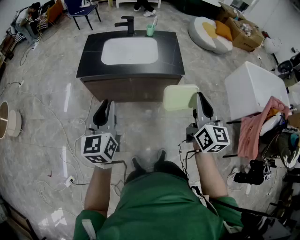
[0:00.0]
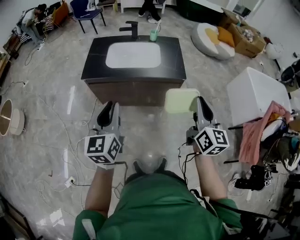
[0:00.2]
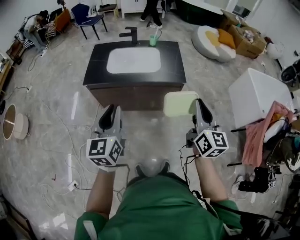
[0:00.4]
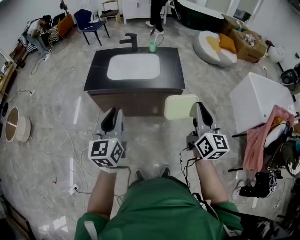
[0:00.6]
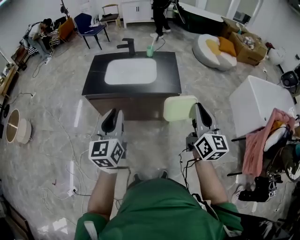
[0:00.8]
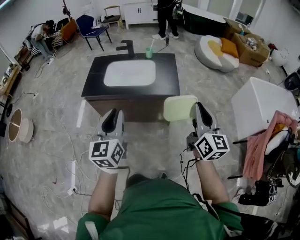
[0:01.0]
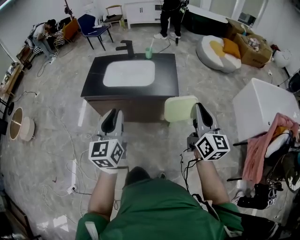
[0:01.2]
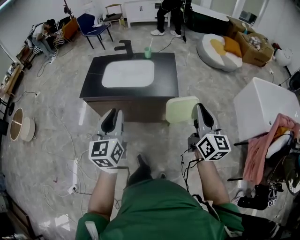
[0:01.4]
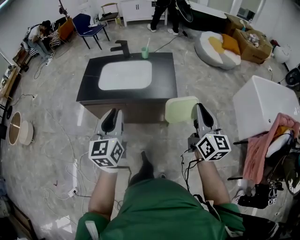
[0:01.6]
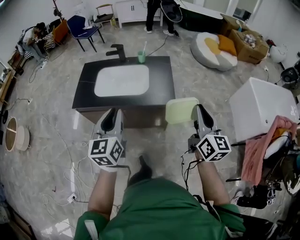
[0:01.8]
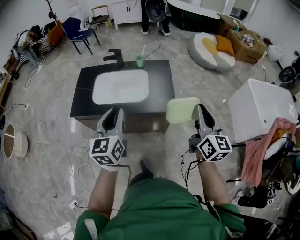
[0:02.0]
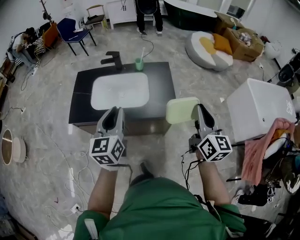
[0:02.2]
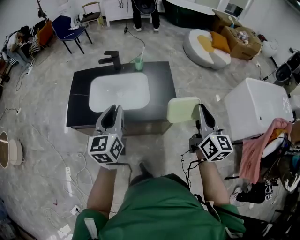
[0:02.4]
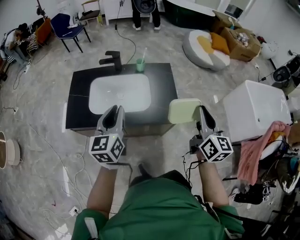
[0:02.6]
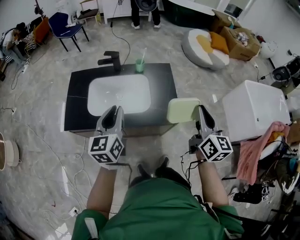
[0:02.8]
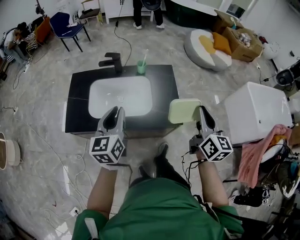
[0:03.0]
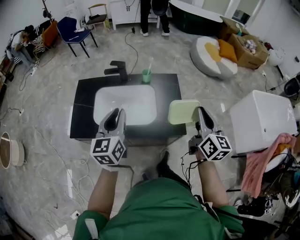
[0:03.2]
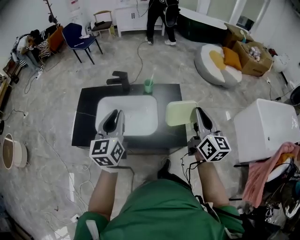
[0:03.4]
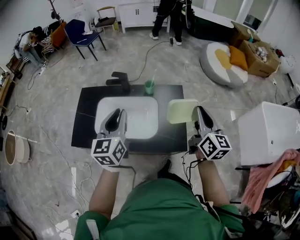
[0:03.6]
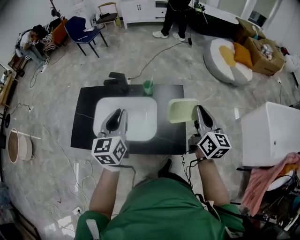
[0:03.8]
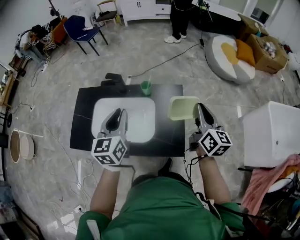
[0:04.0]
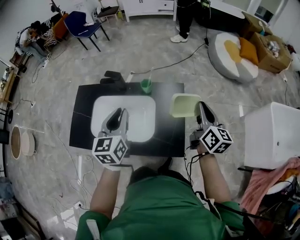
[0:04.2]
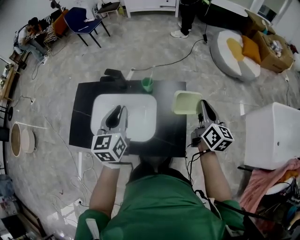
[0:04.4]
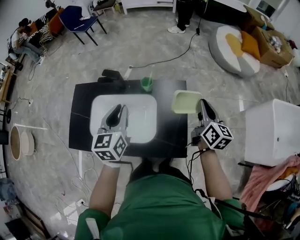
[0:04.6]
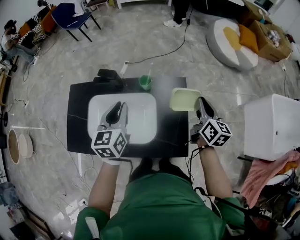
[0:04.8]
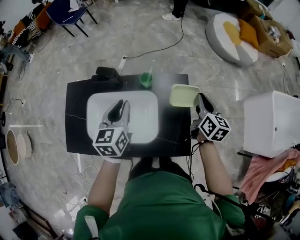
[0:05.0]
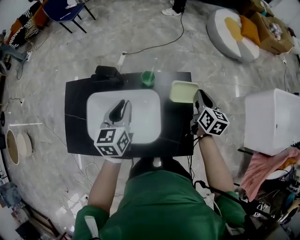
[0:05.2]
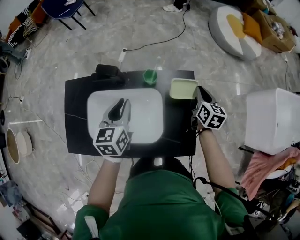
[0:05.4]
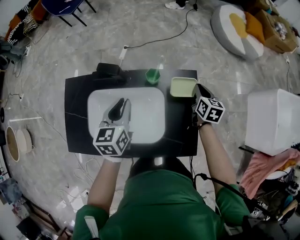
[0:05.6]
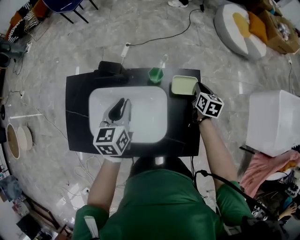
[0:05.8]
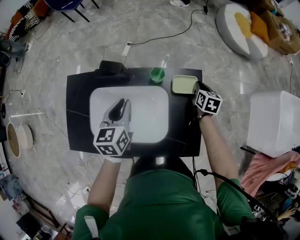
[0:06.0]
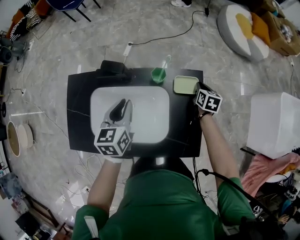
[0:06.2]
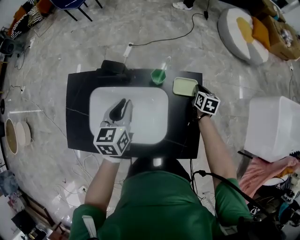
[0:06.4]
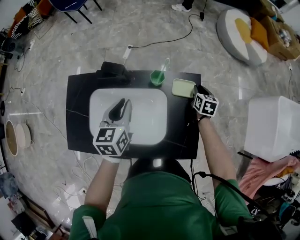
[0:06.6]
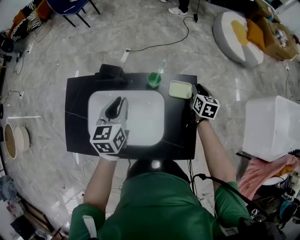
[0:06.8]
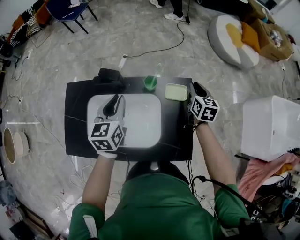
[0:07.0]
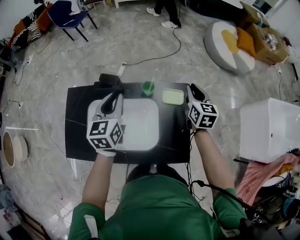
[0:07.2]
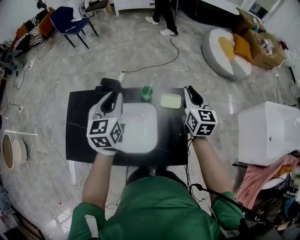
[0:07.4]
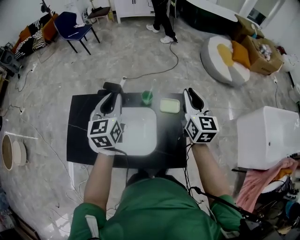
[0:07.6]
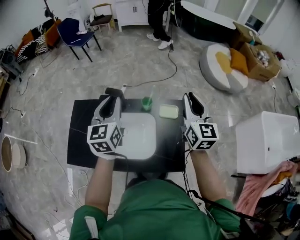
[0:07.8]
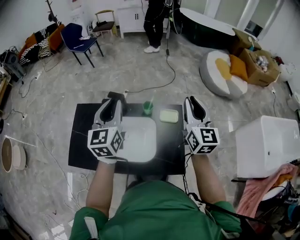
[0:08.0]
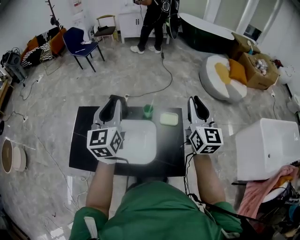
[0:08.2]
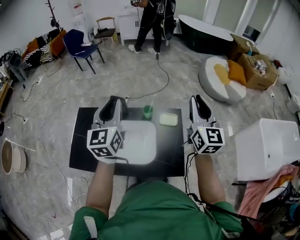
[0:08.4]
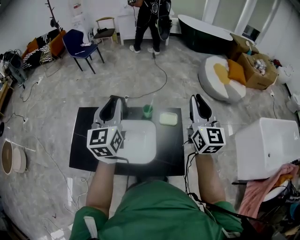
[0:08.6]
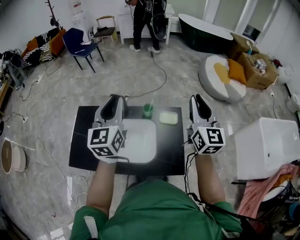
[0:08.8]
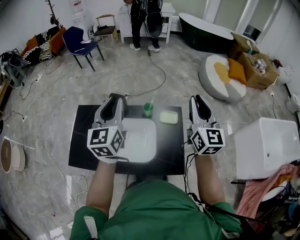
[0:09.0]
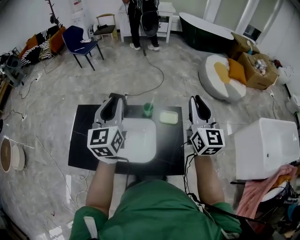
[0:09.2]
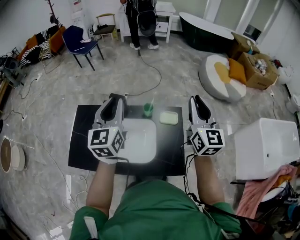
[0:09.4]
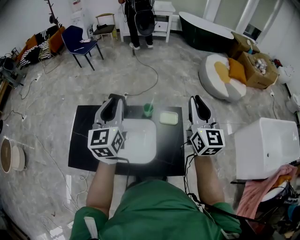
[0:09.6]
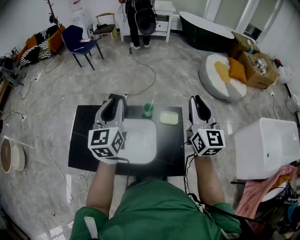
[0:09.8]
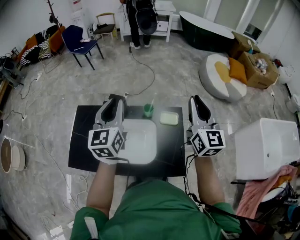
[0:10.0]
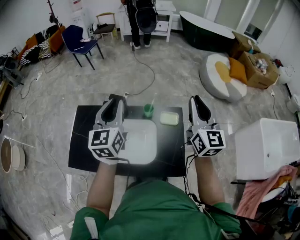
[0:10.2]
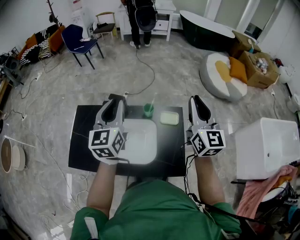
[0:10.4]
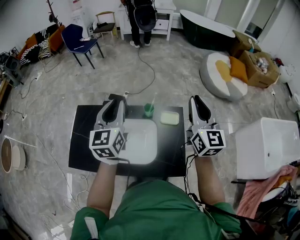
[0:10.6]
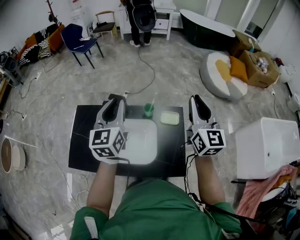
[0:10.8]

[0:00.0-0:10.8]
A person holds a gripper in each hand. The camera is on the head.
0:00.0 to 0:01.6: The grippers both shift to the right and forward by some 20 cm.
0:01.6 to 0:03.0: The grippers both shift forward by about 30 cm.
0:03.0 to 0:04.6: The two grippers go roughly 30 cm forward.
0:04.6 to 0:06.2: The right gripper is displaced downward and forward by roughly 30 cm, and angles its fingers downward, by approximately 30 degrees. Meanwhile the left gripper is displaced downward, forward and to the left by some 15 cm.
0:06.2 to 0:07.8: The right gripper is displaced upward by about 35 cm, and tilts its fingers approximately 40 degrees upward. Meanwhile the left gripper heads upward, covering roughly 20 cm, and rotates roughly 20 degrees.
0:07.8 to 0:09.2: Both grippers travel together upward, some 5 cm.
0:09.2 to 0:10.8: The grippers stay close to where they were, moving slightly.

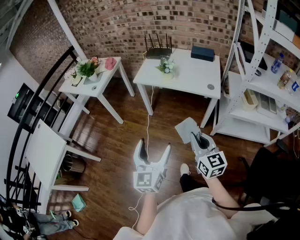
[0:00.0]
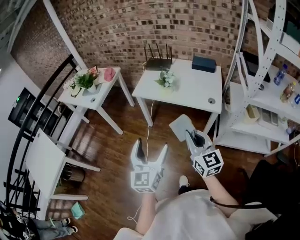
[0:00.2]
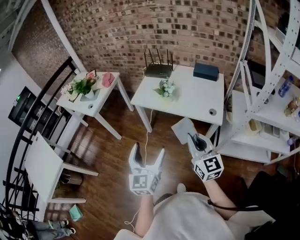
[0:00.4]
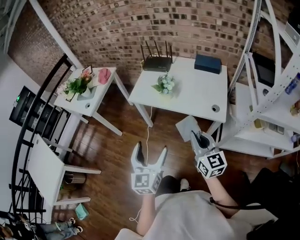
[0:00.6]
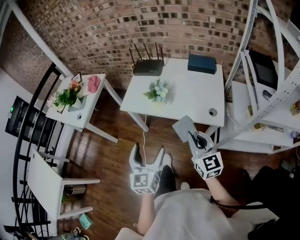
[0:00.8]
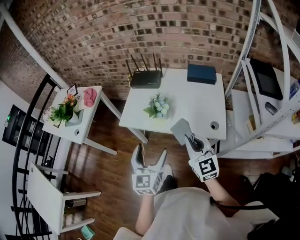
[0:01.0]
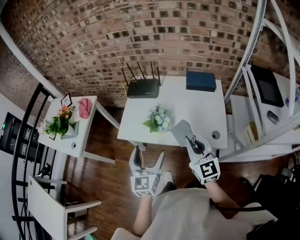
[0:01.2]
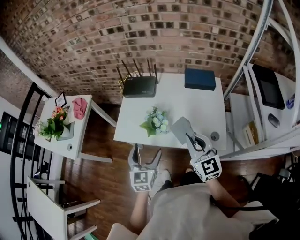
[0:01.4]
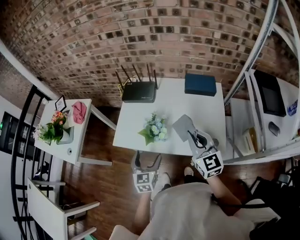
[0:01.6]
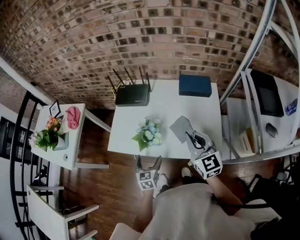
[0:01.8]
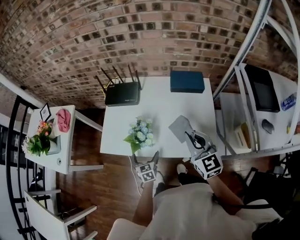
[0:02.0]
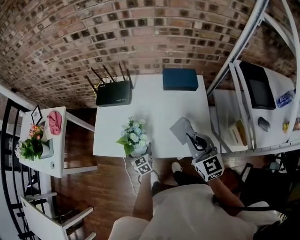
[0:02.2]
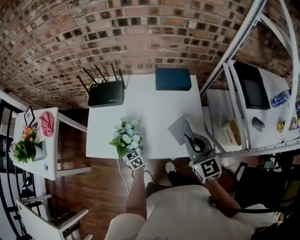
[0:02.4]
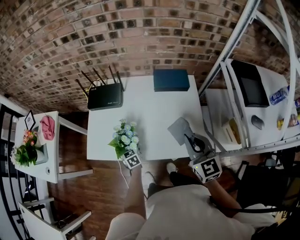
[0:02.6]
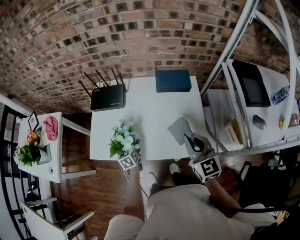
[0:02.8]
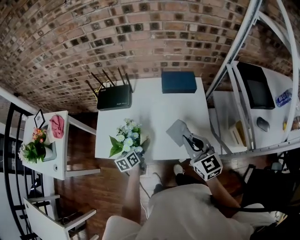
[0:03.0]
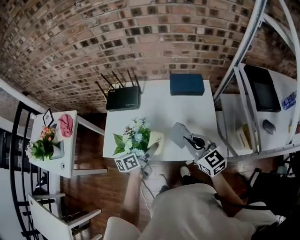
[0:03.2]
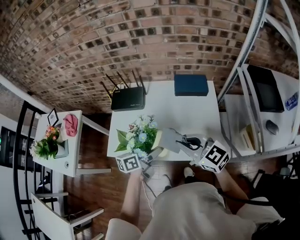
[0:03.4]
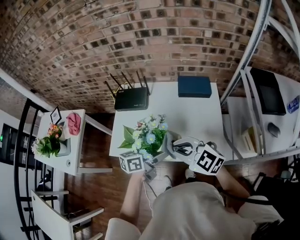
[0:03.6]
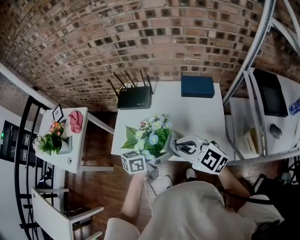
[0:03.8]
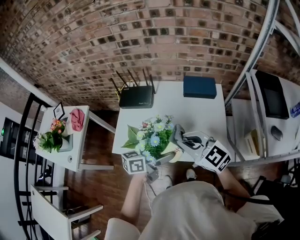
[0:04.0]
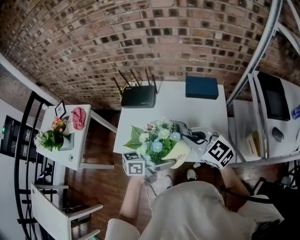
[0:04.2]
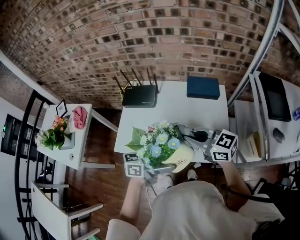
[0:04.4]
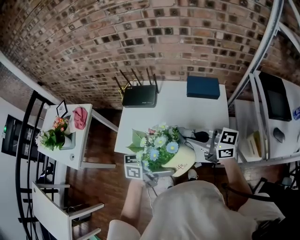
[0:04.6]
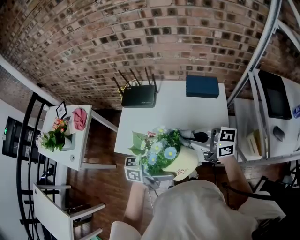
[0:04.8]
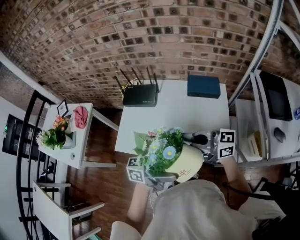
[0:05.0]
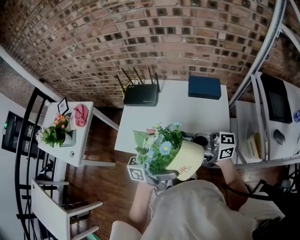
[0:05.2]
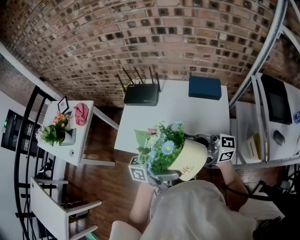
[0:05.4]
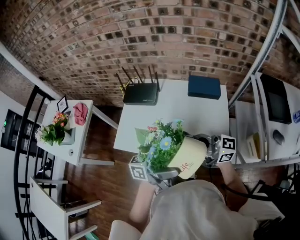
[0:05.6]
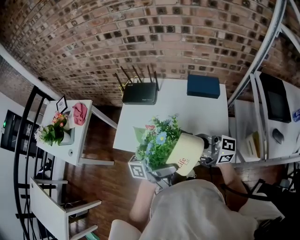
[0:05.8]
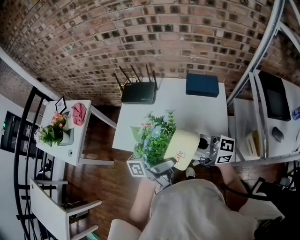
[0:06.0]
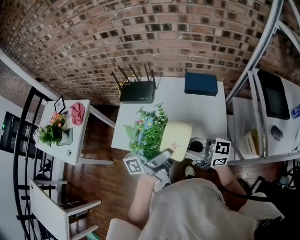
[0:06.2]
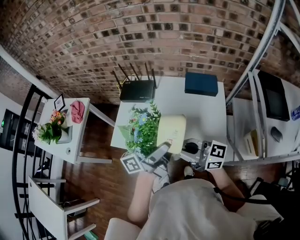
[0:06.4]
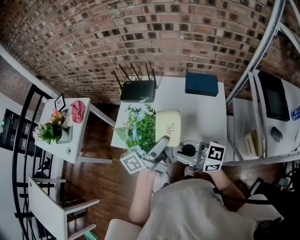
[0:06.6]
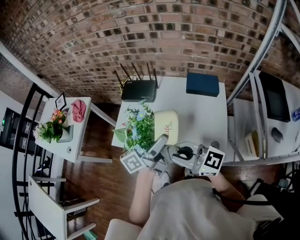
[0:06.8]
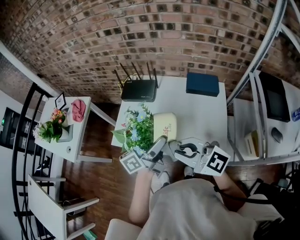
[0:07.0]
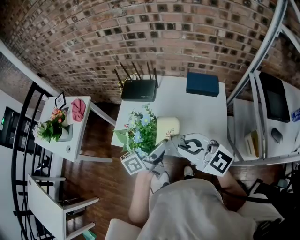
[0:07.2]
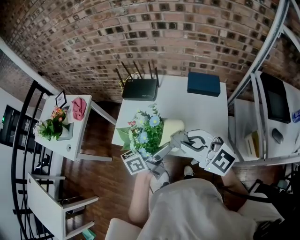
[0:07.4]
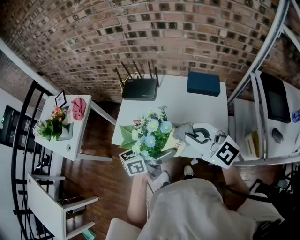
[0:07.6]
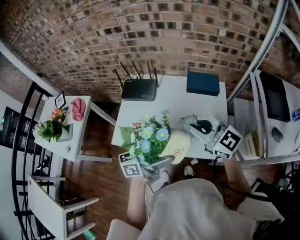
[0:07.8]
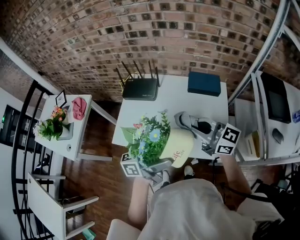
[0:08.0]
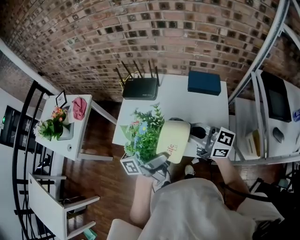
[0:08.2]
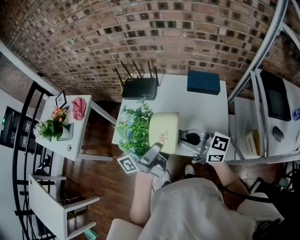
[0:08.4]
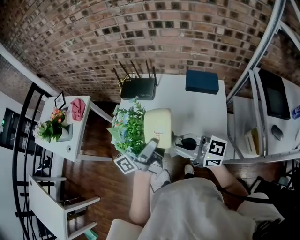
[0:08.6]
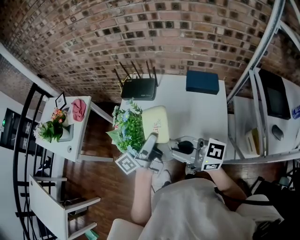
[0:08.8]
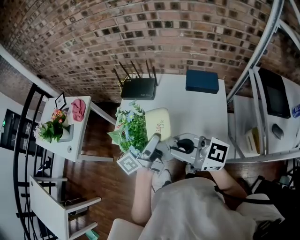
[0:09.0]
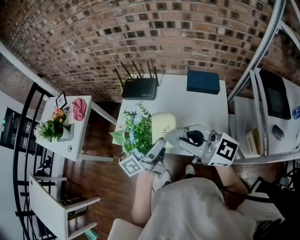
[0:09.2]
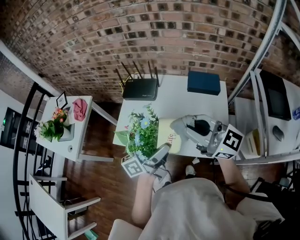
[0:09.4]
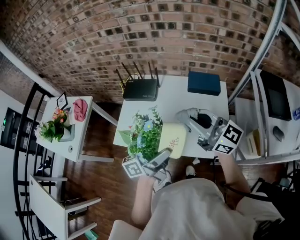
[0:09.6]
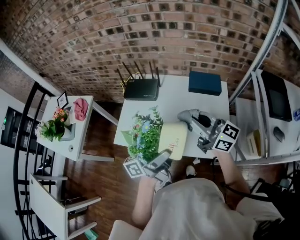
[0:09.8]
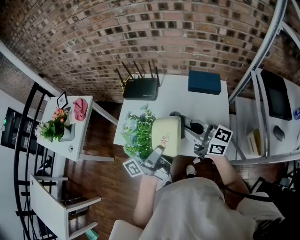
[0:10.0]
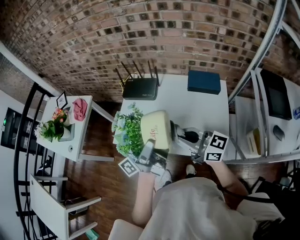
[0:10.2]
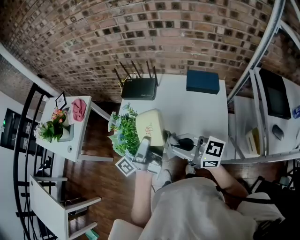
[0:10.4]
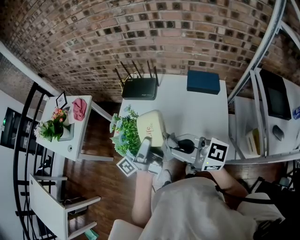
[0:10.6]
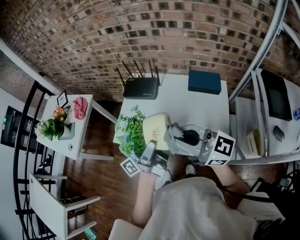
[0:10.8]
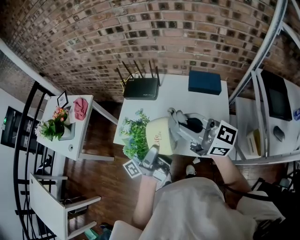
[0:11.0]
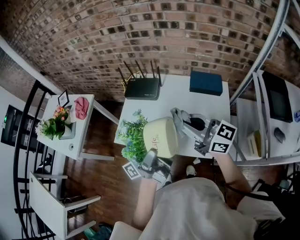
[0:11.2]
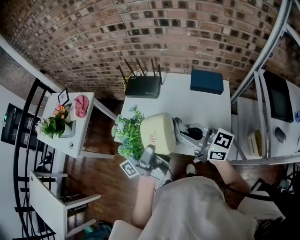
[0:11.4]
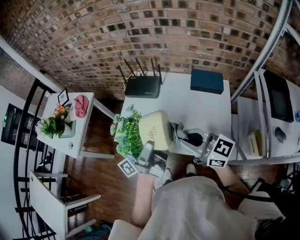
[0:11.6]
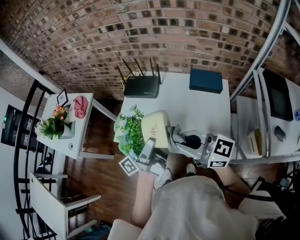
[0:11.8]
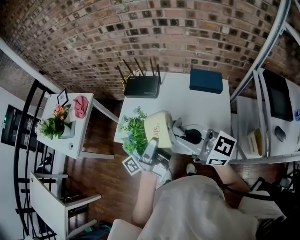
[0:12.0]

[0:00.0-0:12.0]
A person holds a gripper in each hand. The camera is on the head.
0:00.0 to 0:01.6: Both grippers are carried forward, roughly 50 cm. The left gripper swivels about 30 degrees.
0:01.6 to 0:03.0: The right gripper is displaced to the right by about 10 cm, while the left gripper is displaced forward, downward and to the right by about 15 cm, and turns by about 40 degrees.
0:03.0 to 0:04.4: The right gripper changes place by roughly 10 cm, and rotates about 40 degrees; the left gripper moves upward, some 20 cm, and angles its fingers upward, by roughly 30 degrees.
0:04.4 to 0:06.0: The right gripper turns by roughly 20 degrees; the left gripper moves upward, about 10 cm, and points its fingers approximately 30 degrees further upward.
0:06.0 to 0:07.6: The left gripper travels downward by some 10 cm, and angles its fingers downward, by some 30 degrees; the right gripper moves upward, approximately 5 cm, and changes its angle by about 40 degrees.
0:07.6 to 0:09.0: The right gripper shifts by roughly 5 cm, and swivels roughly 30 degrees. The left gripper changes place by some 5 cm, and swivels about 30 degrees.
0:09.0 to 0:10.4: The right gripper moves downward, about 5 cm.
0:10.4 to 0:12.0: The right gripper moves up and down over approximately 10 cm, changing direction 2 times.

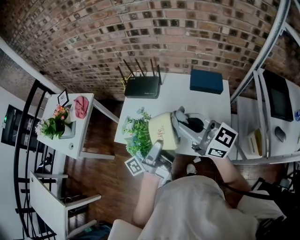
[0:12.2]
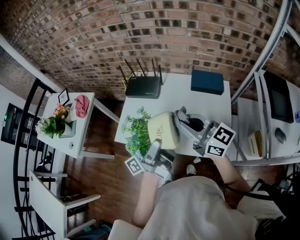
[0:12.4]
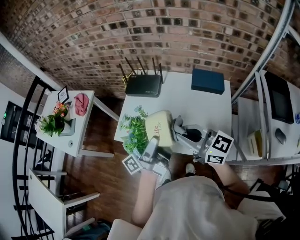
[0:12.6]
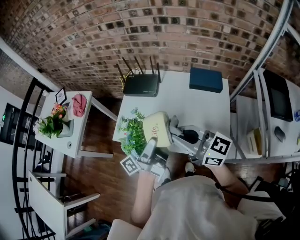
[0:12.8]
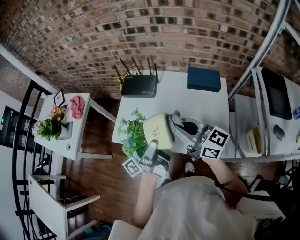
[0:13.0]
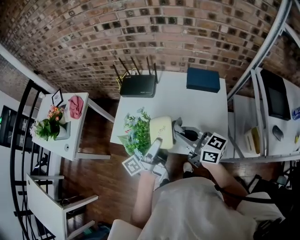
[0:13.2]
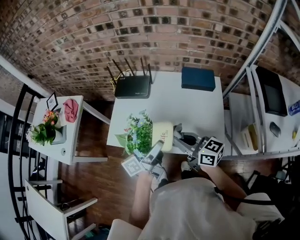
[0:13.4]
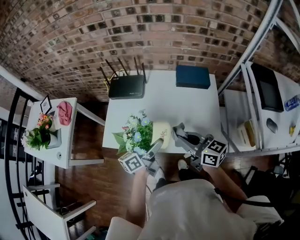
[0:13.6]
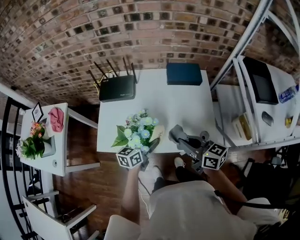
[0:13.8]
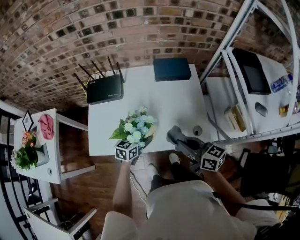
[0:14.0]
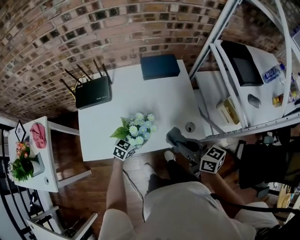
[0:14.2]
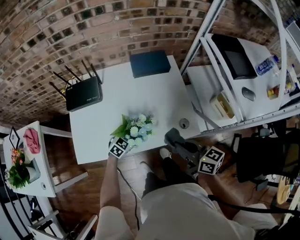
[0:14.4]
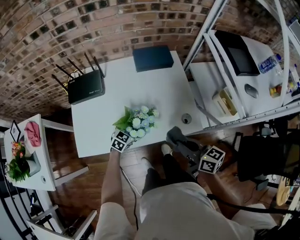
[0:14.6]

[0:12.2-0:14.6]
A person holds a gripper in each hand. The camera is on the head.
0:12.2 to 0:13.4: Both grippers move downward, some 10 cm. The right gripper turns by approximately 30 degrees. The left gripper changes its angle by about 20 degrees.
0:13.4 to 0:14.6: The right gripper moves roughly 15 cm, and rotates approximately 30 degrees. Meanwhile the left gripper shifts about 25 cm downward, and tilts its fingers approximately 50 degrees downward.
